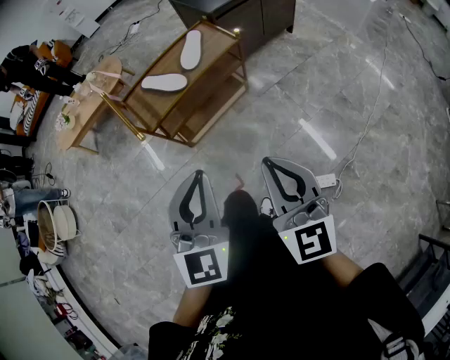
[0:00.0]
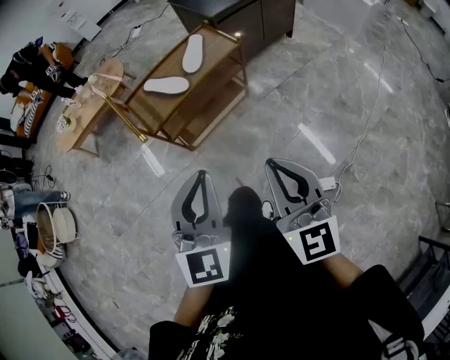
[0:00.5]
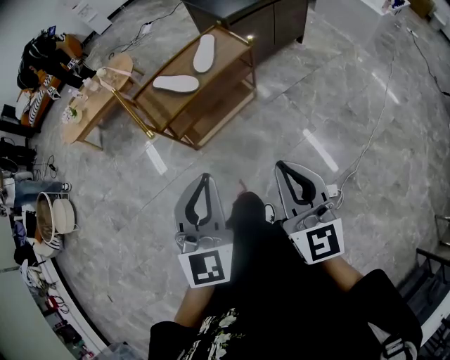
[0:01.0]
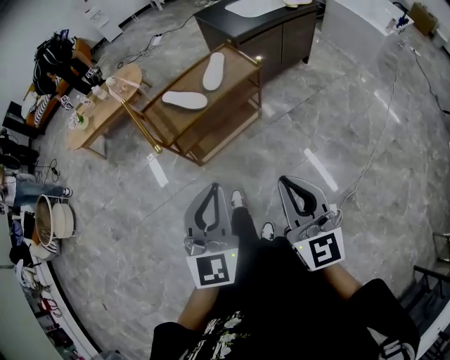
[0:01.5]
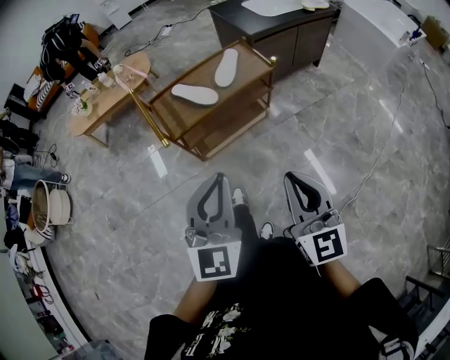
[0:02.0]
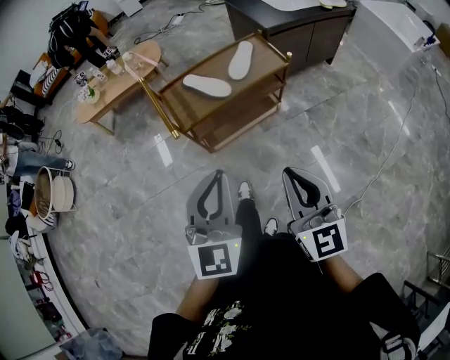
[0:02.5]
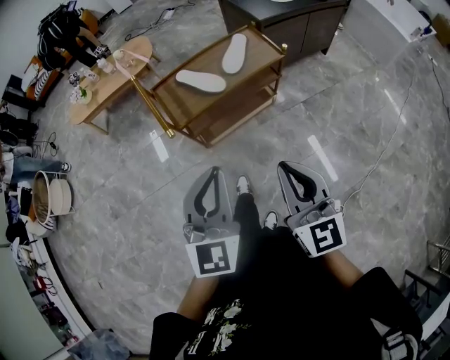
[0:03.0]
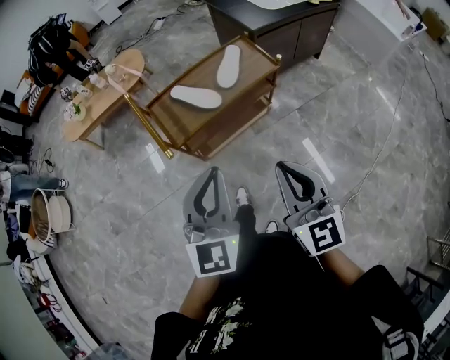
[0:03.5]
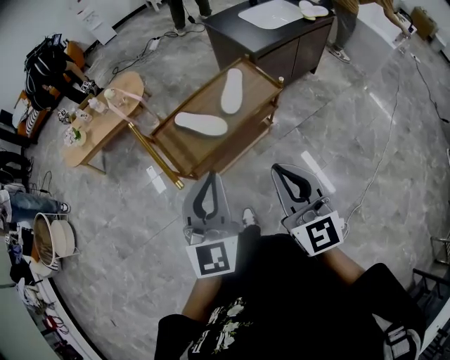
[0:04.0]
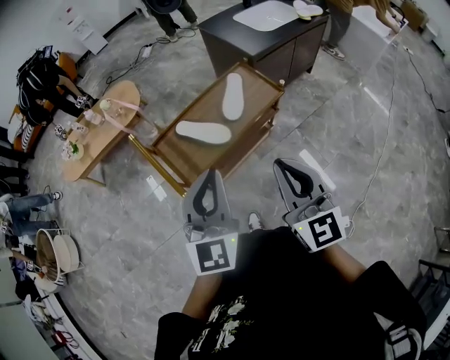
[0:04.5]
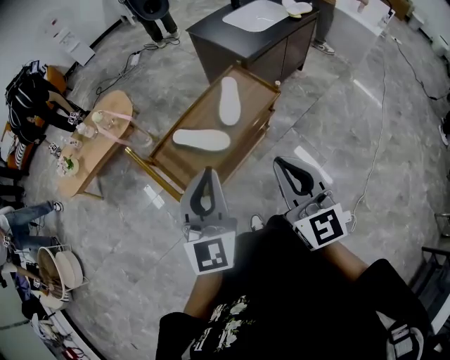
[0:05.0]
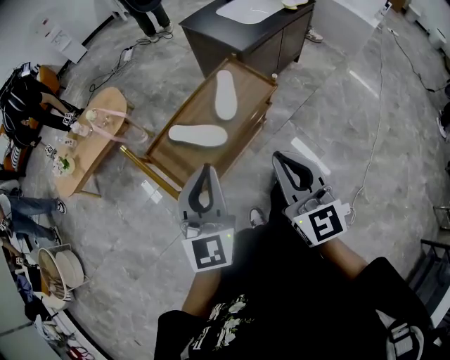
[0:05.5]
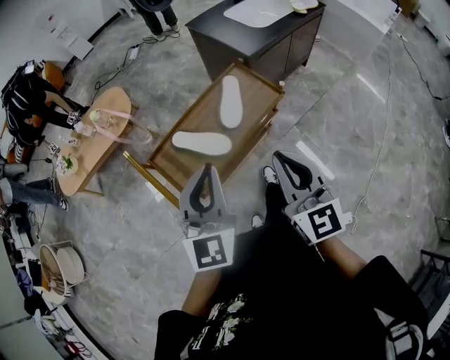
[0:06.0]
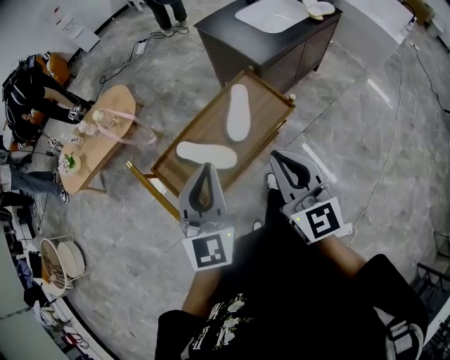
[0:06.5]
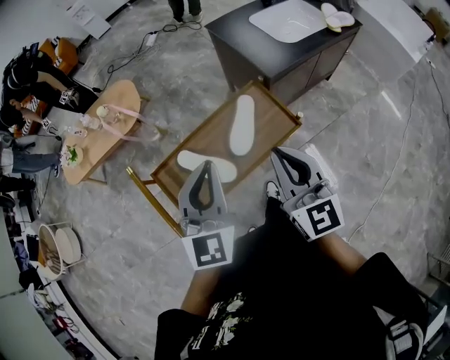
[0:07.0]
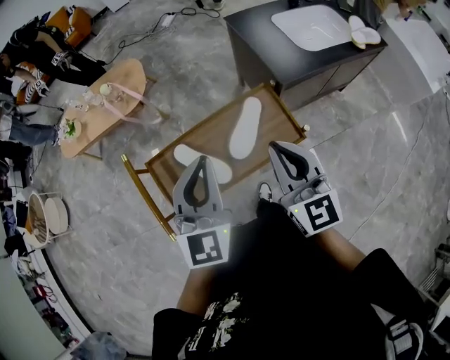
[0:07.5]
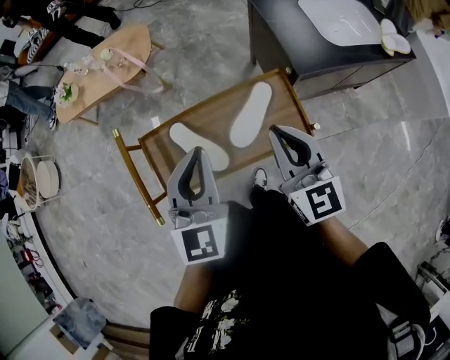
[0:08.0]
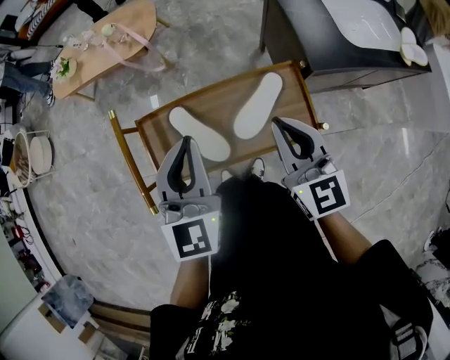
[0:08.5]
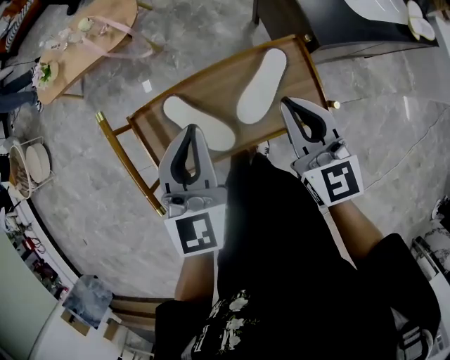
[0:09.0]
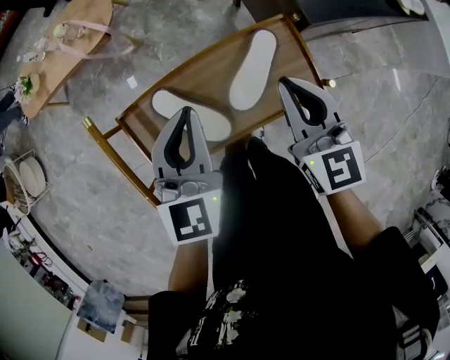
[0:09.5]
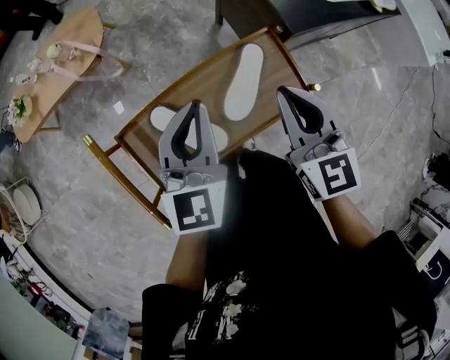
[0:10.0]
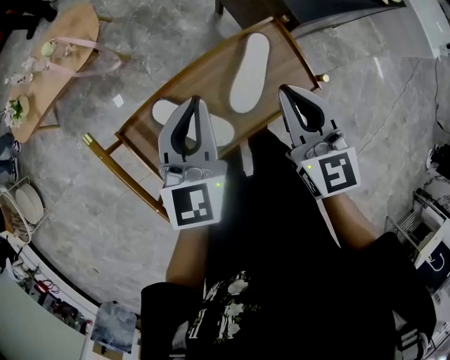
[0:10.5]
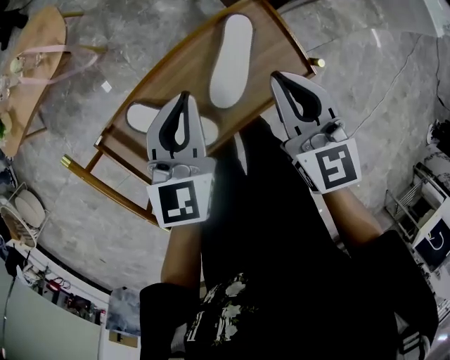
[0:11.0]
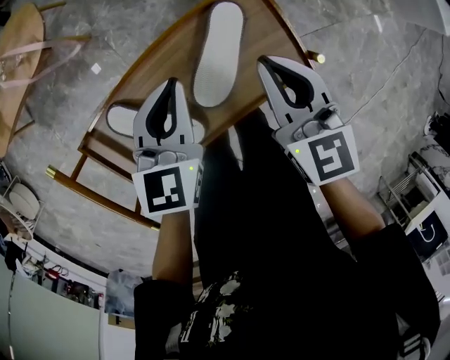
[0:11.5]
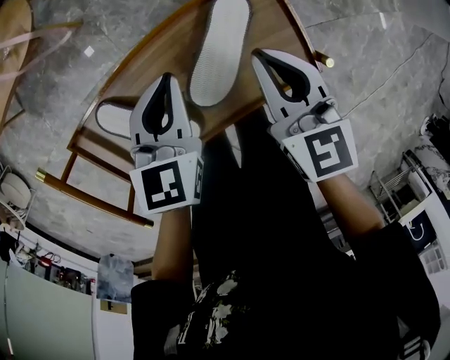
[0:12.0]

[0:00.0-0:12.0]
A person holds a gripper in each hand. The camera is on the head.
0:00.0 to 0:02.0: There are only small adjustments of the grippers.
0:02.0 to 0:04.0: The right gripper heads forward and to the left, covering roughly 20 cm; the left gripper heads forward, covering approximately 15 cm.
0:04.0 to 0:06.0: The grippers both shift forward by approximately 10 cm.
0:06.0 to 0:08.0: The left gripper moves about 20 cm, and swivels some 30 degrees, while the right gripper ends up some 25 cm from where it was, and swivels roughly 30 degrees.
0:08.0 to 0:10.0: The right gripper shifts by approximately 5 cm. Meanwhile the left gripper is displaced forward and downward by about 10 cm.
0:10.0 to 0:12.0: The right gripper shifts approximately 15 cm downward and forward. The left gripper travels downward by approximately 15 cm, and rotates about 20 degrees.

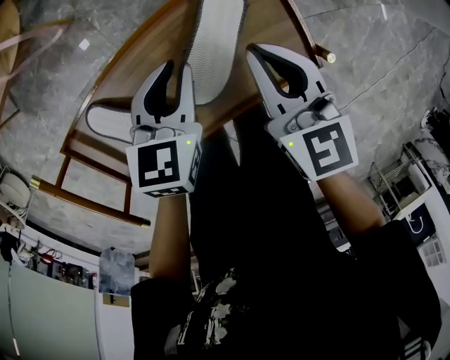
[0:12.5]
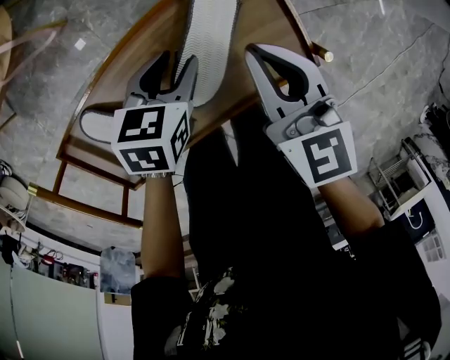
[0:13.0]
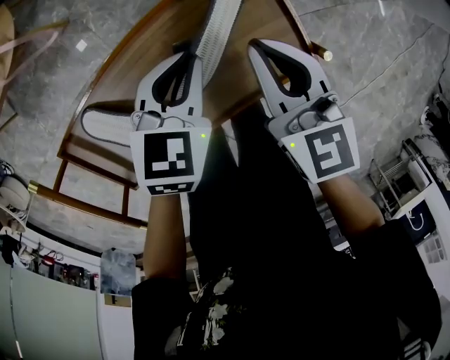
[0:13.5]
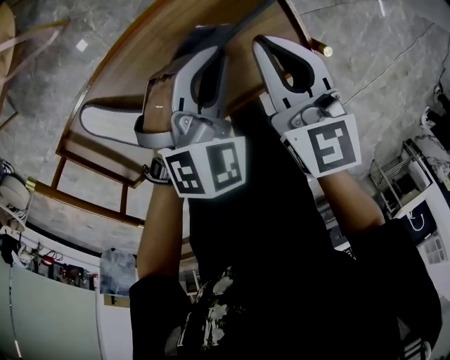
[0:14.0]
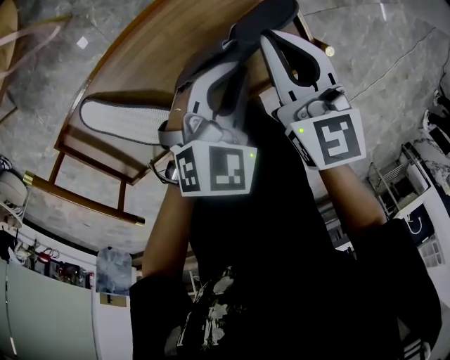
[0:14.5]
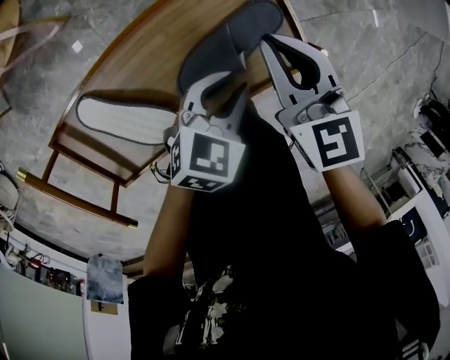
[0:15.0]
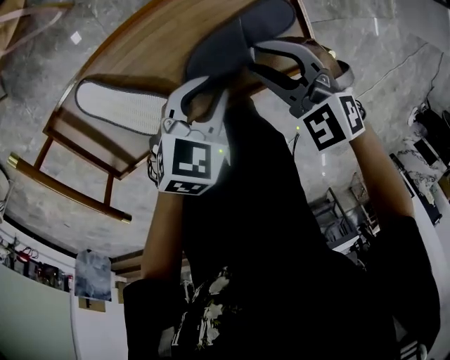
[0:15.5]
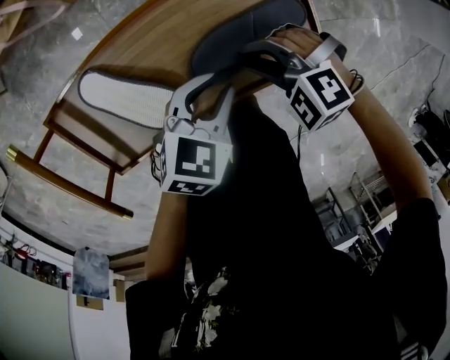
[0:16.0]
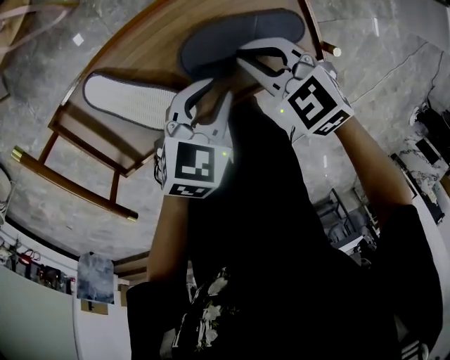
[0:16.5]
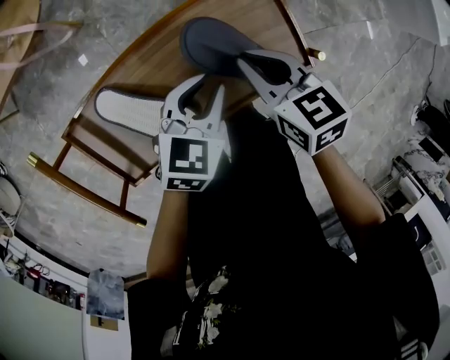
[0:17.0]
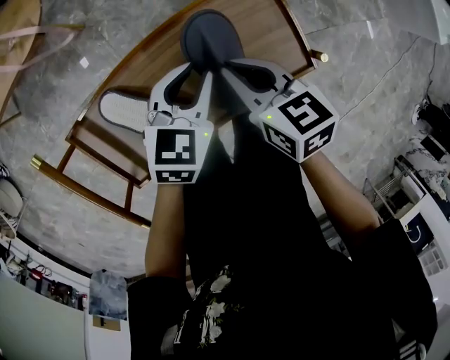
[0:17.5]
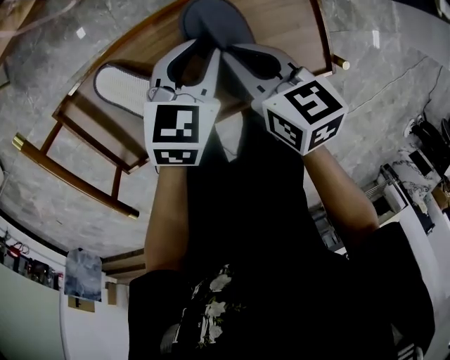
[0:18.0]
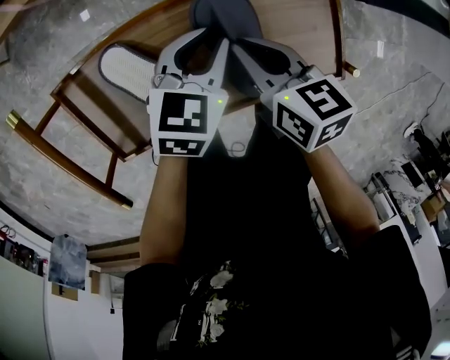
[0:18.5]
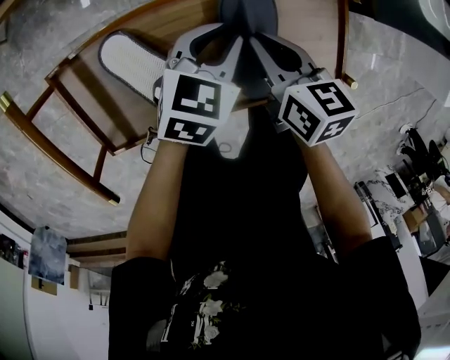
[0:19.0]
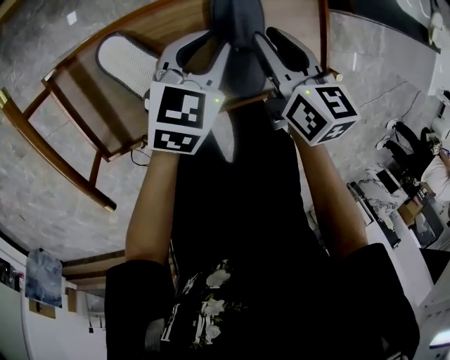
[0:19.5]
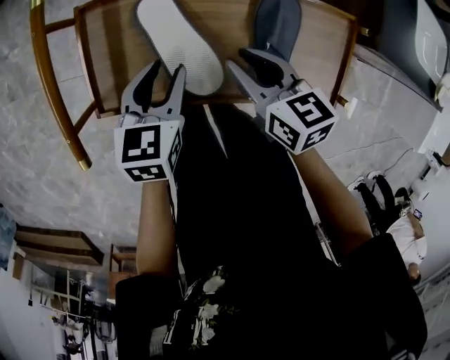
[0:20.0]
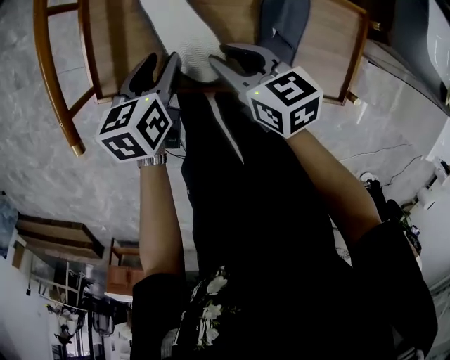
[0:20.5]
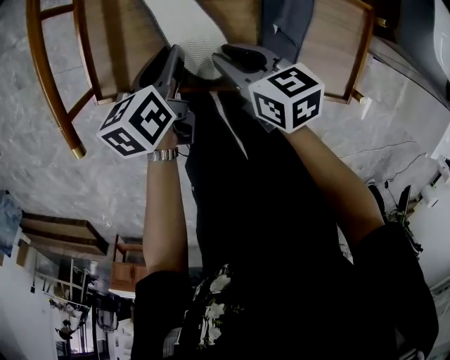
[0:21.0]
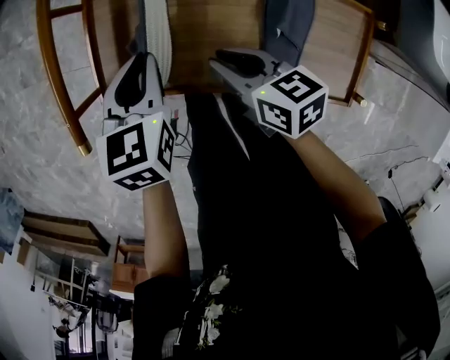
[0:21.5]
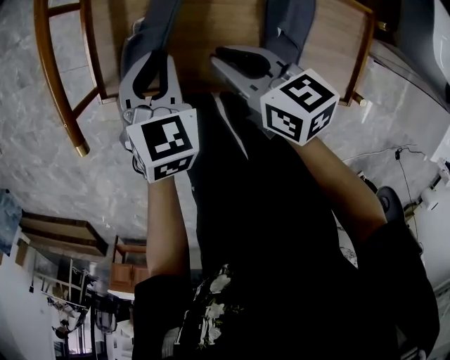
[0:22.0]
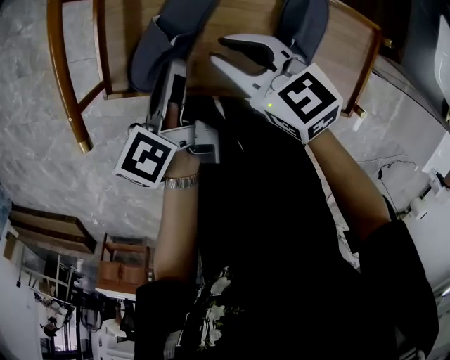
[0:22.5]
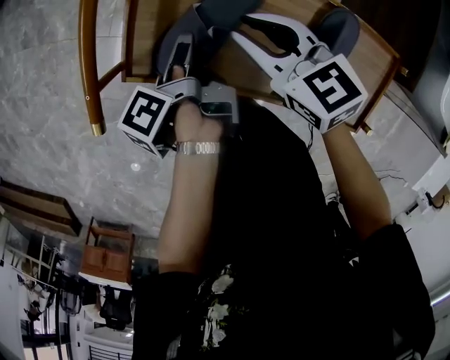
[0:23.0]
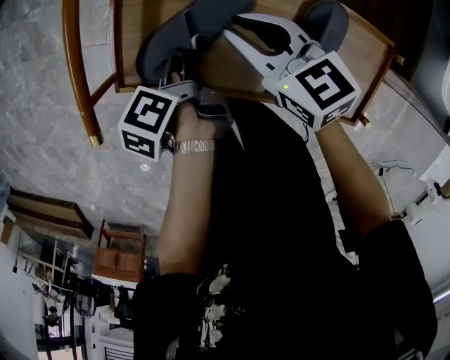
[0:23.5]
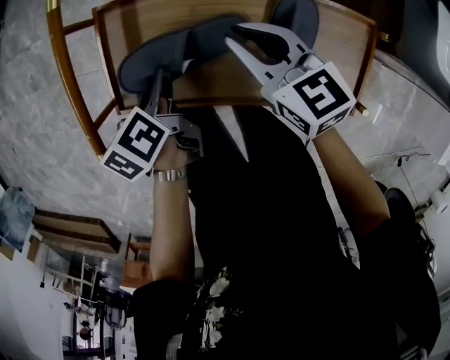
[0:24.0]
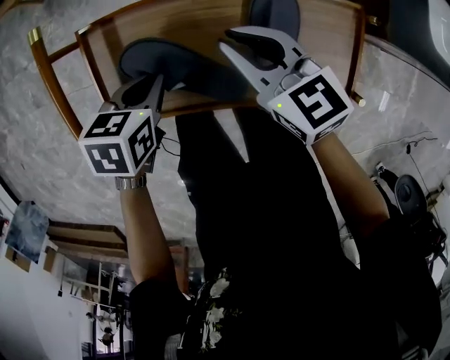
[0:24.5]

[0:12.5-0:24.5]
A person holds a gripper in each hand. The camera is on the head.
0:12.5 to 0:14.5: The left gripper shifts some 10 cm to the right, rotates approximately 30 degrees, and opens, then closes again.
0:14.5 to 0:16.5: The right gripper shifts by approximately 10 cm, rotates about 50 degrees, and opens and closes again, while the left gripper shifts by some 10 cm, and swivels roughly 20 degrees.
0:16.5 to 0:18.5: The right gripper shifts roughly 5 cm to the left, and rotates about 40 degrees. Meanwhile the left gripper travels forward and to the left by roughly 10 cm.
0:18.5 to 0:20.5: The left gripper shifts by some 20 cm, rolls counterclockwise, seen from behind, by roughly 40 degrees, and opens, while the right gripper ends up approximately 15 cm from where it was, swivels roughly 30 degrees, and opens.
0:20.5 to 0:22.5: The left gripper twists some 40 degrees counterclockwise, seen from behind, while the right gripper shifts by some 5 cm.
0:22.5 to 0:24.5: The left gripper tips its fingers downward by approximately 30 degrees, and closes; the right gripper changes place by roughly 10 cm.

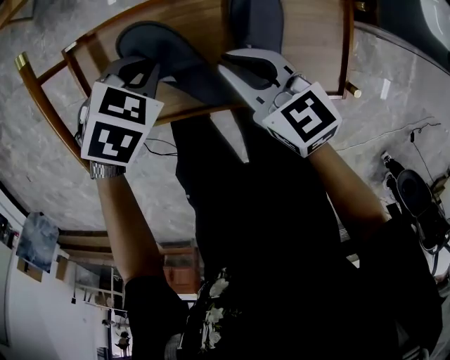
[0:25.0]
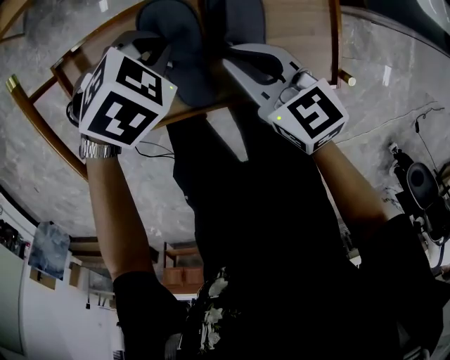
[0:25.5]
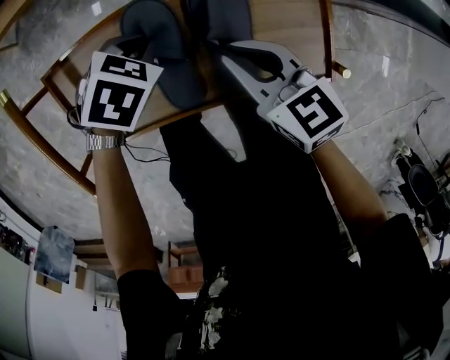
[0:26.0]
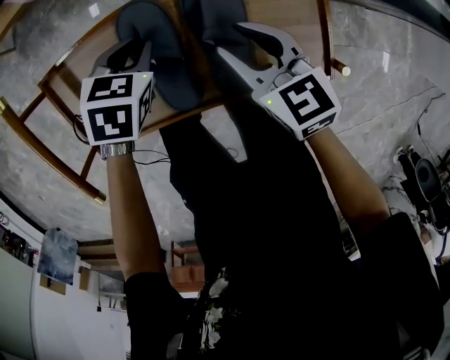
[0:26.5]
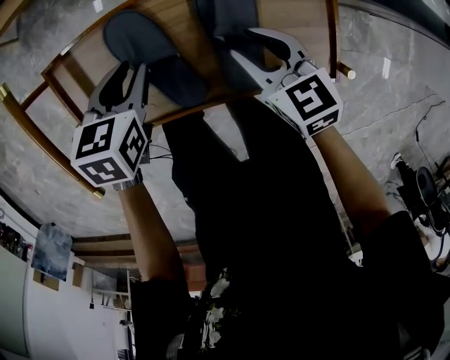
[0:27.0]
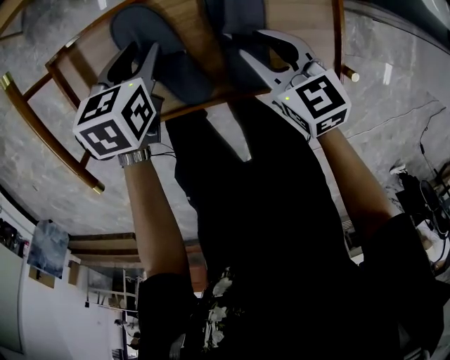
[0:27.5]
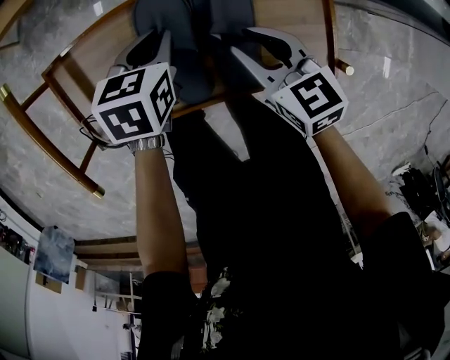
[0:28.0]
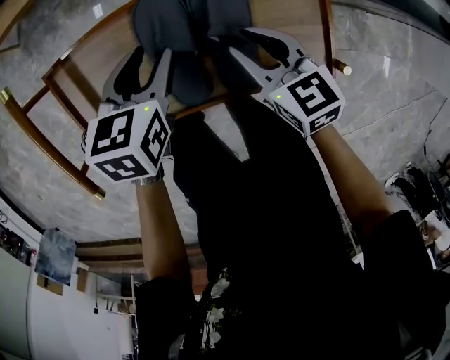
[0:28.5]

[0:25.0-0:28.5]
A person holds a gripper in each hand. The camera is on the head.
0:25.0 to 0:27.0: The right gripper travels to the right by approximately 10 cm, and opens up, while the left gripper turns by about 40 degrees, and opens its fingers.
0:27.0 to 0:28.5: The left gripper heads to the right, covering roughly 5 cm.
